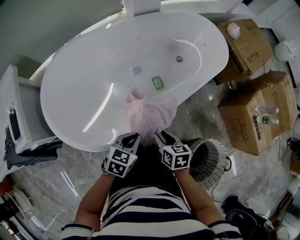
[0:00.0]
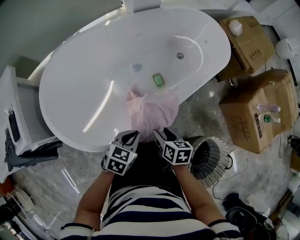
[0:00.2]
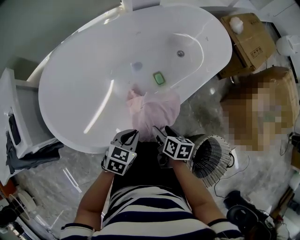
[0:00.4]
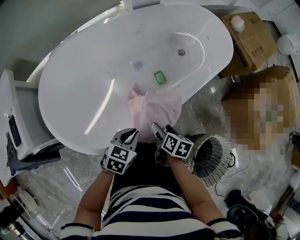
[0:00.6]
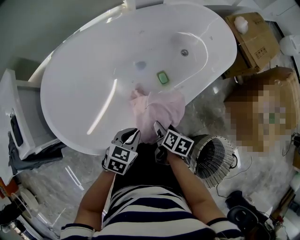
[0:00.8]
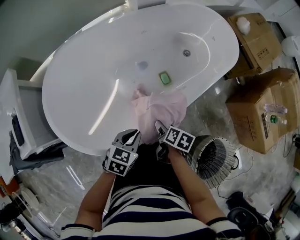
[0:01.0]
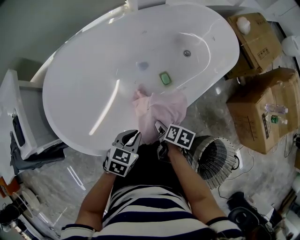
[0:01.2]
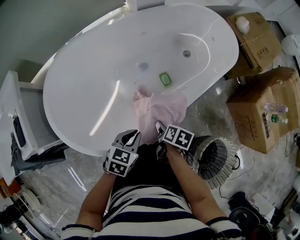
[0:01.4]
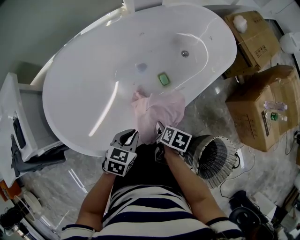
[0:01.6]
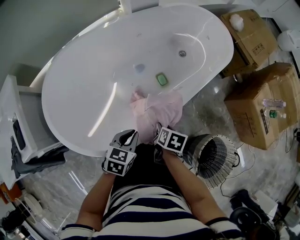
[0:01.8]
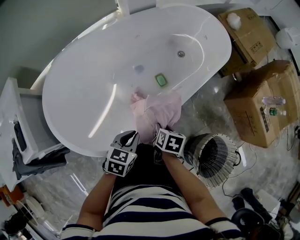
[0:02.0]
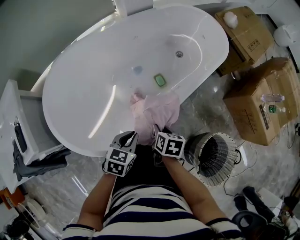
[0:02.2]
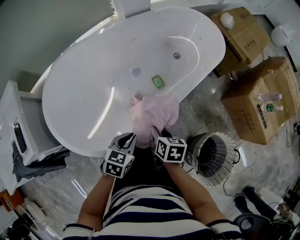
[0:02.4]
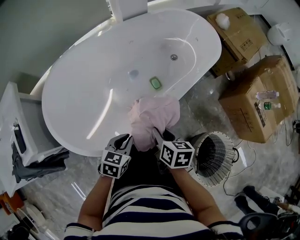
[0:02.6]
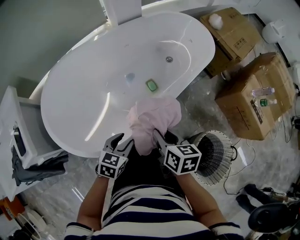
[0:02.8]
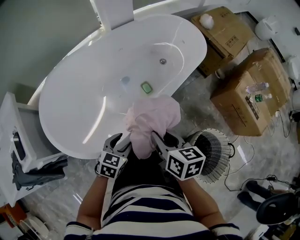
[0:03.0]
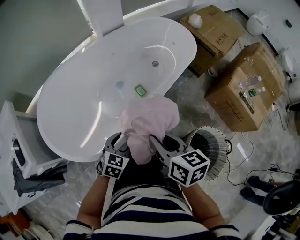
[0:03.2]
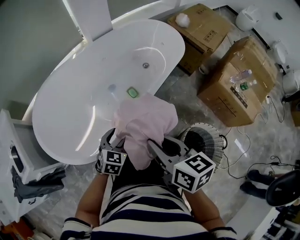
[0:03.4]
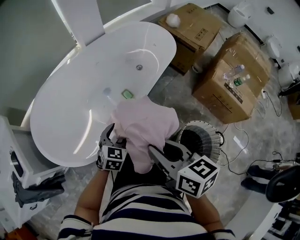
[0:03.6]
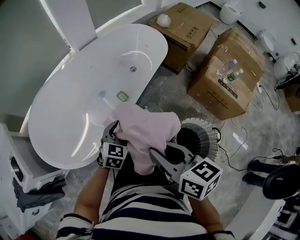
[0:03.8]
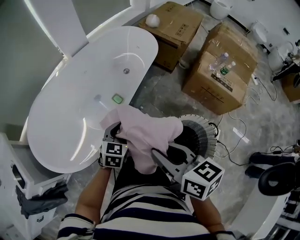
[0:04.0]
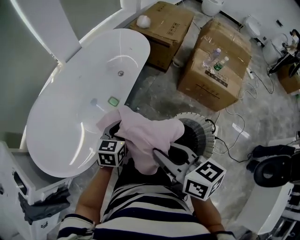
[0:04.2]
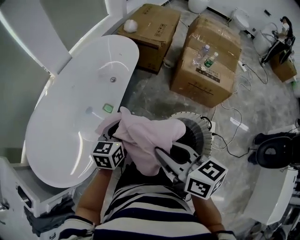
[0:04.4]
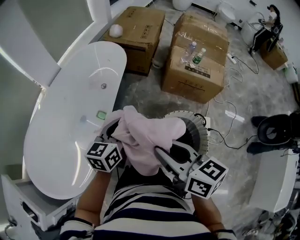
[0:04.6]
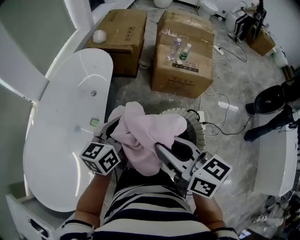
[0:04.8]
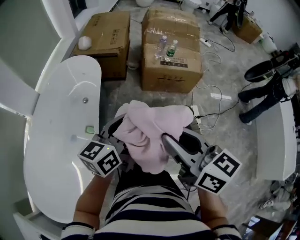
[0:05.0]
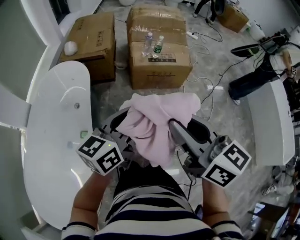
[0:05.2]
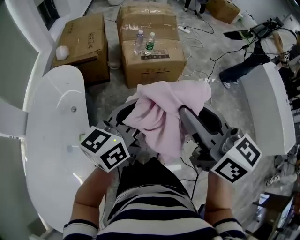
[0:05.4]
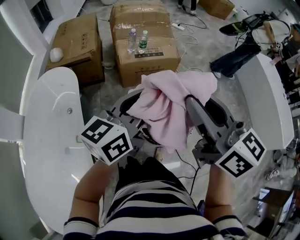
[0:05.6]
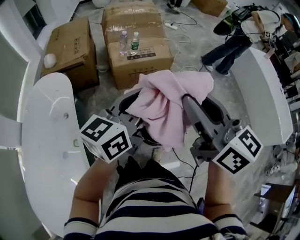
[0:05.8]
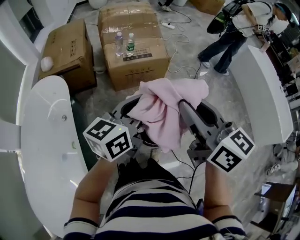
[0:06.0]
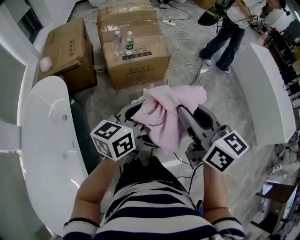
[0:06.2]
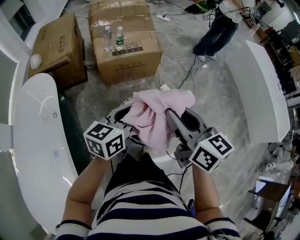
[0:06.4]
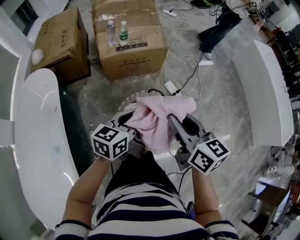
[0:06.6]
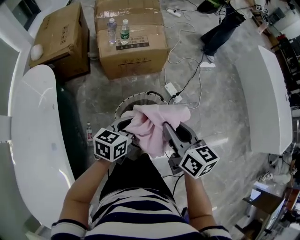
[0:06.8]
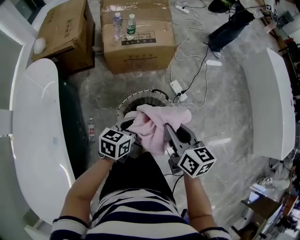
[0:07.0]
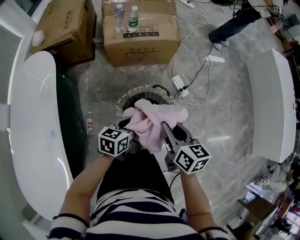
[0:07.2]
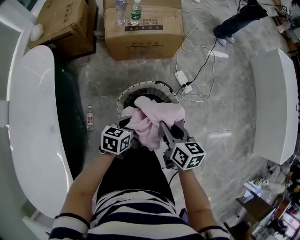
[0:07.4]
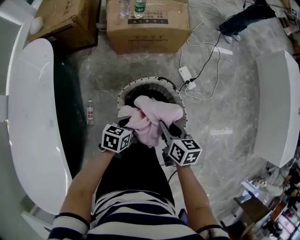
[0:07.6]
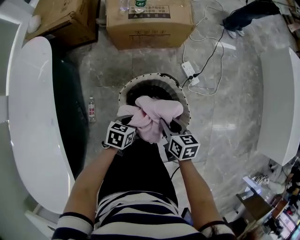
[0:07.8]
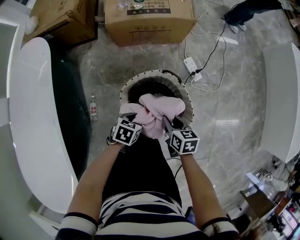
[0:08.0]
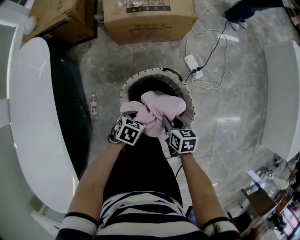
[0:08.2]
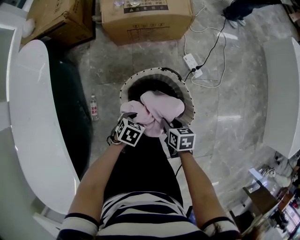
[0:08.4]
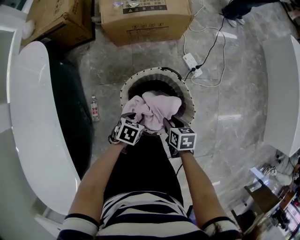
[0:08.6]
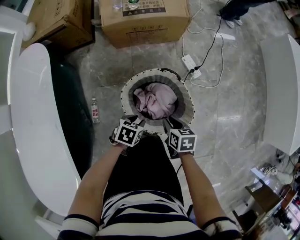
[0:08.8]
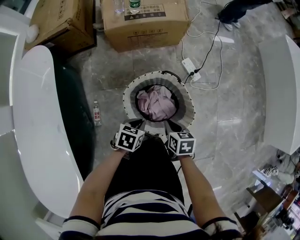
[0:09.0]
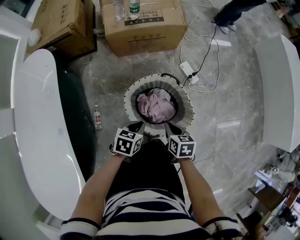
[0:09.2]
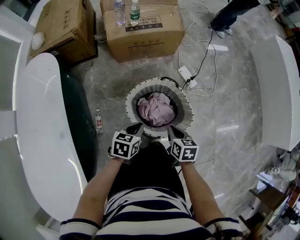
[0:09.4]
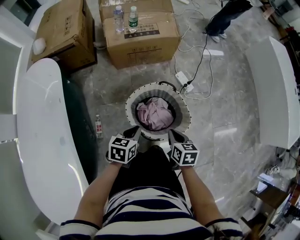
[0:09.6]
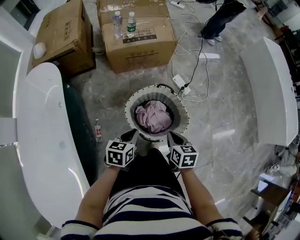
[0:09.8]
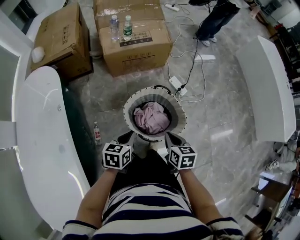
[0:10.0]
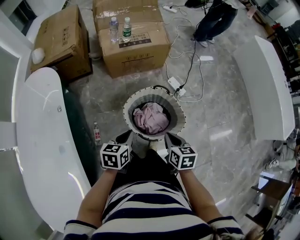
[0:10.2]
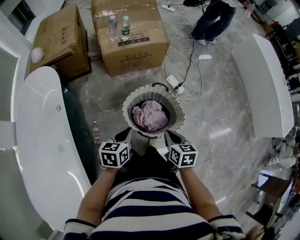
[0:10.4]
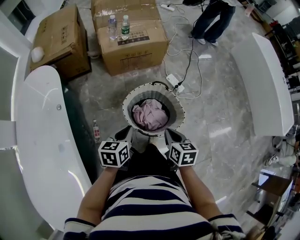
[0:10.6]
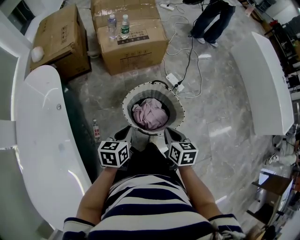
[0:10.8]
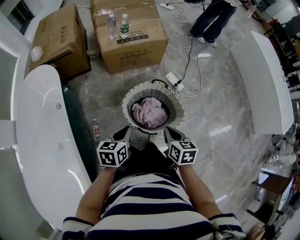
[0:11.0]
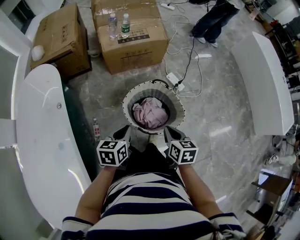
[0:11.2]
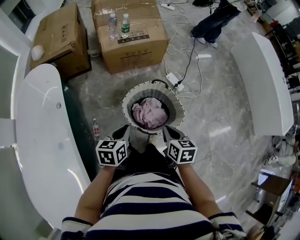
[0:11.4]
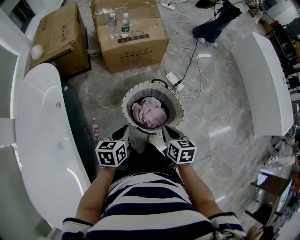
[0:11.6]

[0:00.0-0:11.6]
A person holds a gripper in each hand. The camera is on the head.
0:00.0 to 0:01.4: The right gripper goes roughly 5 cm downward, changes its angle by some 30 degrees, and opens.
0:01.4 to 0:02.8: The left gripper opens. The right gripper heads upward, covering some 15 cm, swivels about 30 degrees, and closes its fingers.
0:02.8 to 0:04.4: The right gripper shifts some 30 cm upward, to the right and backward, and changes its angle by roughly 20 degrees. Meanwhile the left gripper travels to the right and upward by about 25 cm, changes its angle by some 30 degrees, and closes.
0:04.4 to 0:05.8: The left gripper changes place by roughly 35 cm, and rotates roughly 60 degrees. The right gripper changes place by about 25 cm, and changes its angle by some 50 degrees.
0:05.8 to 0:07.2: The two grippers go some 30 cm downward. The right gripper changes its angle by about 30 degrees; the left gripper angles its fingers downward, by roughly 40 degrees.
0:07.2 to 0:08.8: The left gripper travels downward and backward by approximately 15 cm, turns by some 30 degrees, and opens up. Meanwhile the right gripper shifts about 20 cm downward, and turns by about 30 degrees.
0:08.8 to 0:10.2: The right gripper is displaced upward and backward by about 15 cm. Meanwhile the left gripper shifts approximately 15 cm upward, rotates some 30 degrees, and closes up.
0:10.2 to 0:11.6: There are only small adjustments of the grippers.

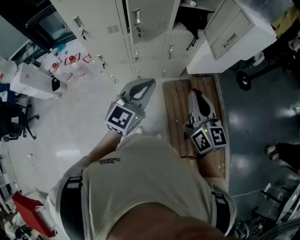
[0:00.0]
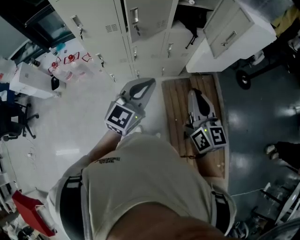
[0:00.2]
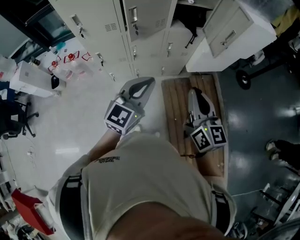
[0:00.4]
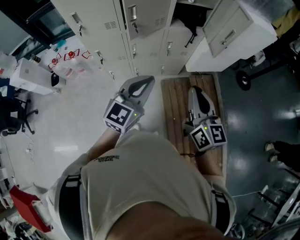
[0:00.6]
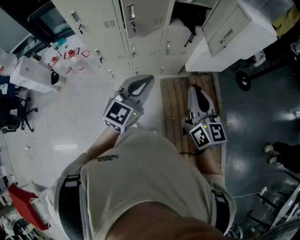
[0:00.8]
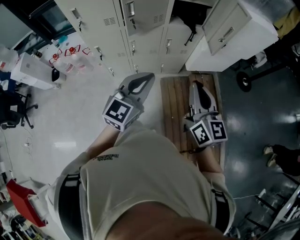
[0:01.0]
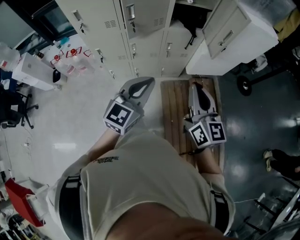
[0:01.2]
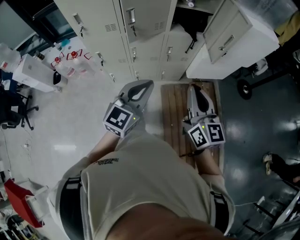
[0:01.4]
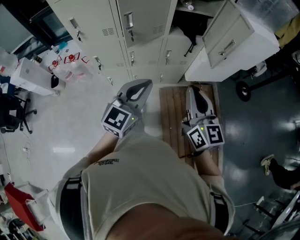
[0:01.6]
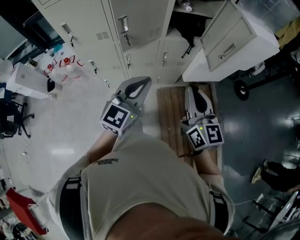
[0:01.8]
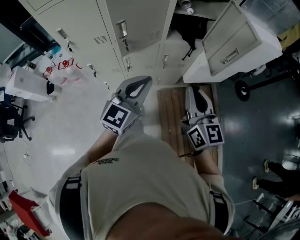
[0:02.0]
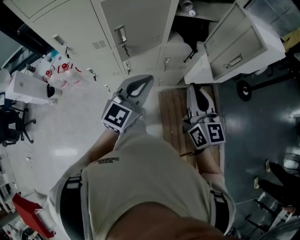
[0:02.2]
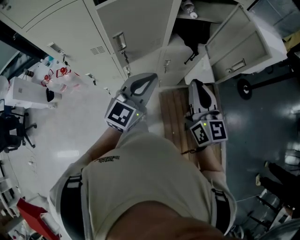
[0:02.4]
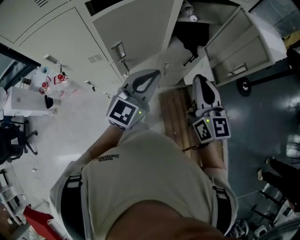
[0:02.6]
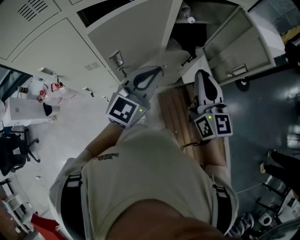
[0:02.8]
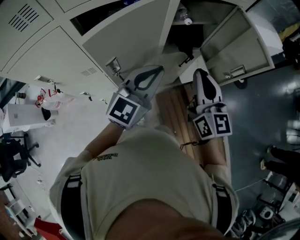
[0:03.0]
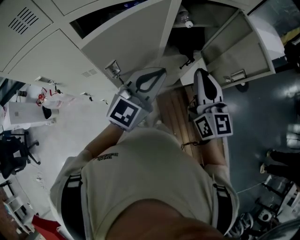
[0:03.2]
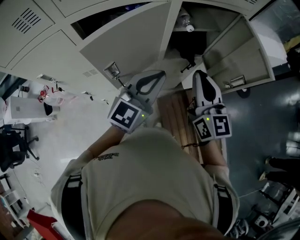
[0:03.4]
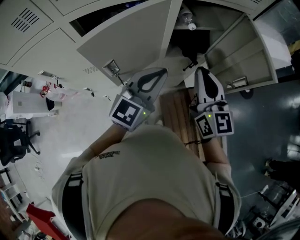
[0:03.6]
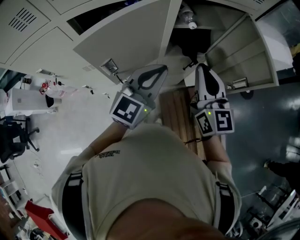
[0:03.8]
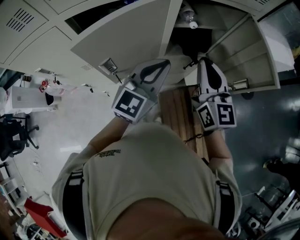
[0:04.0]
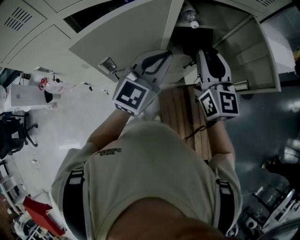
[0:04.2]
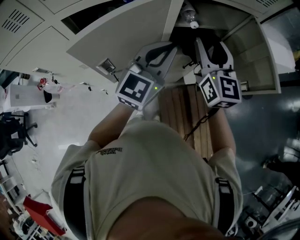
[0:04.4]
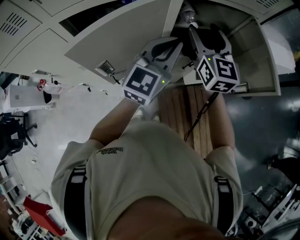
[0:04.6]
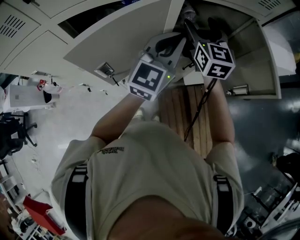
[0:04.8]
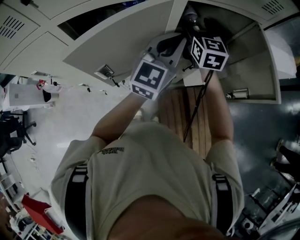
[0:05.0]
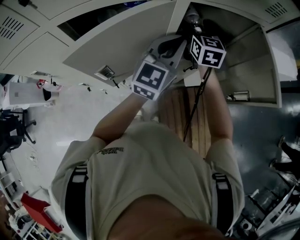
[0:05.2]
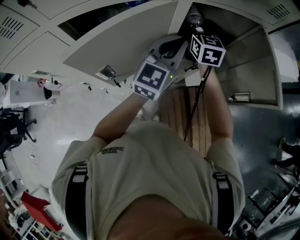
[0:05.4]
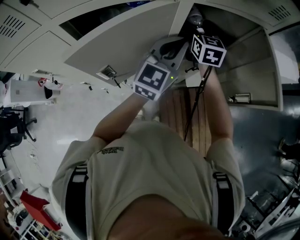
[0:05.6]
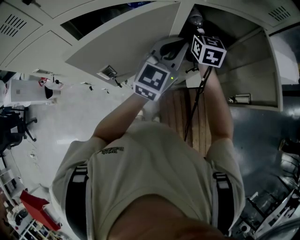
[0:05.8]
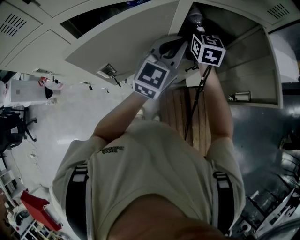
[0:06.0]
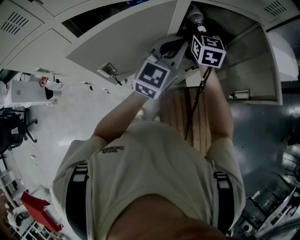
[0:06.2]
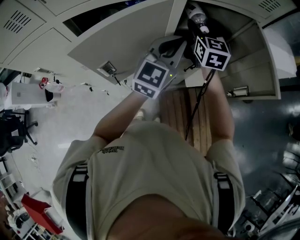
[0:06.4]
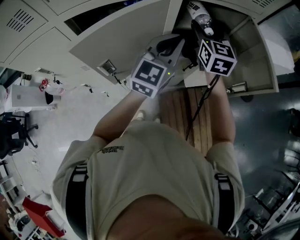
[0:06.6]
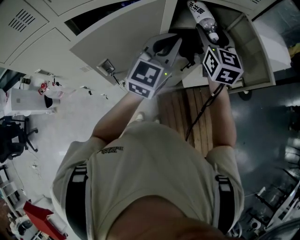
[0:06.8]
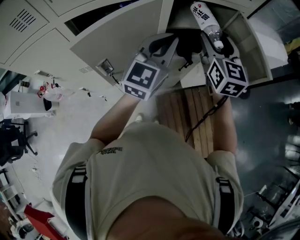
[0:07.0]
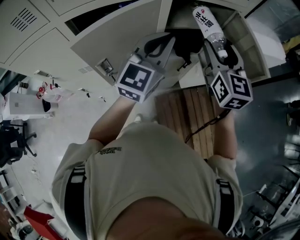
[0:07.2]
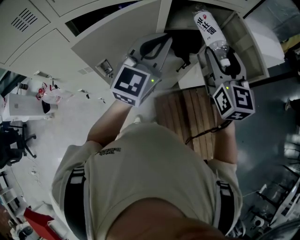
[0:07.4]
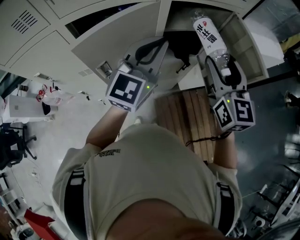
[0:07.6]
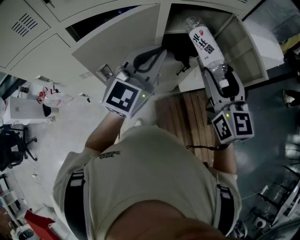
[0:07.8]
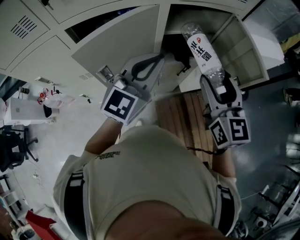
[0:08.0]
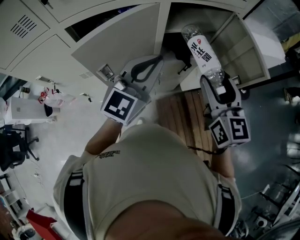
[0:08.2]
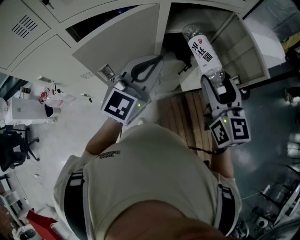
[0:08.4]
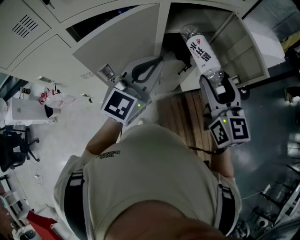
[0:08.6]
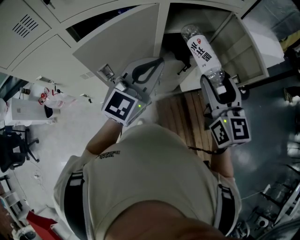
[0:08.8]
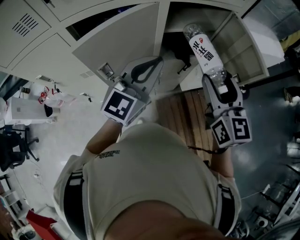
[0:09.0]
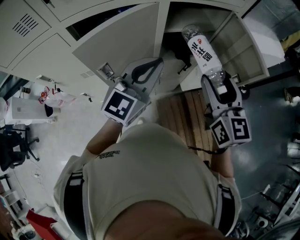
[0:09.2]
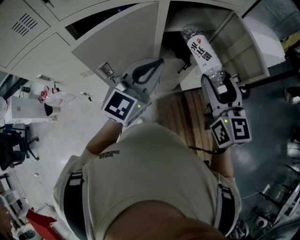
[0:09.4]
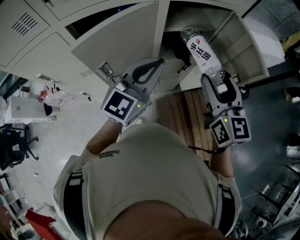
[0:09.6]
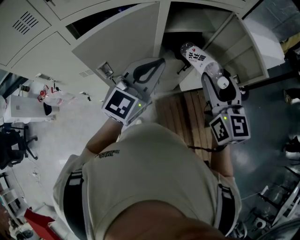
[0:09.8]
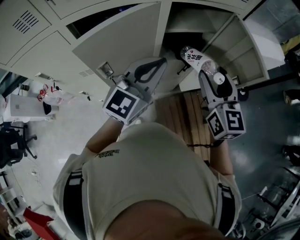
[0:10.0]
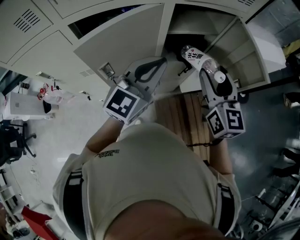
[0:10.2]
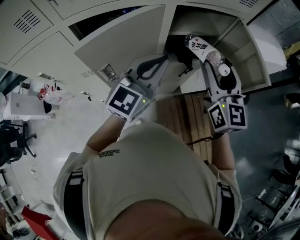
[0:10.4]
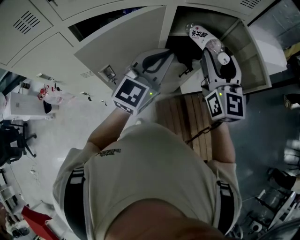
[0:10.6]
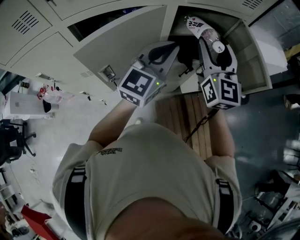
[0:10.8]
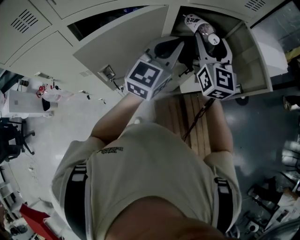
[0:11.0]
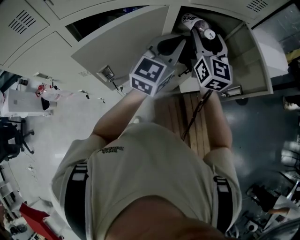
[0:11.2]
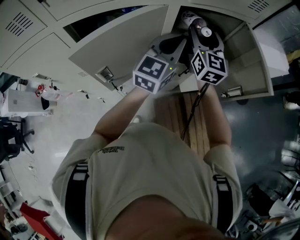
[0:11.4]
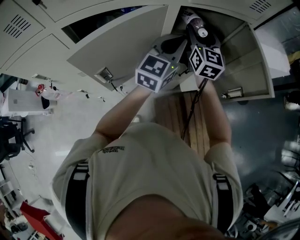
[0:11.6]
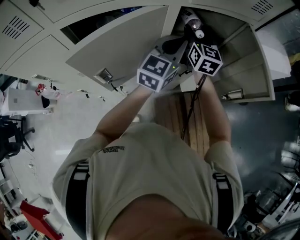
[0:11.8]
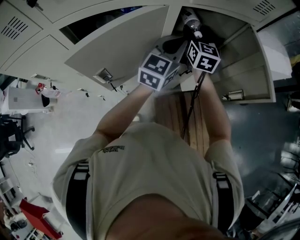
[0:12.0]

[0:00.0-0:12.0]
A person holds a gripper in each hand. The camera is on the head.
0:00.0 to 0:01.6: The left gripper moves about 5 cm, while the right gripper is displaced forward by roughly 5 cm.
0:01.6 to 0:03.0: The two grippers go roughly 25 cm forward.
0:03.0 to 0:04.4: The grippers both shift forward by some 10 cm. The right gripper opens.
0:04.4 to 0:06.0: The right gripper goes roughly 15 cm forward and downward. Meanwhile the left gripper moves forward, some 5 cm.
0:06.0 to 0:07.6: The right gripper shifts roughly 30 cm backward, upward and to the right. The left gripper is displaced backward and upward by about 10 cm.
0:07.6 to 0:09.0: The left gripper shifts by about 5 cm, while the right gripper shifts by approximately 5 cm.
0:09.0 to 0:10.4: The right gripper shifts approximately 5 cm forward.
0:10.4 to 0:12.0: The left gripper goes roughly 15 cm forward, while the right gripper moves forward, downward and to the left, about 25 cm.
